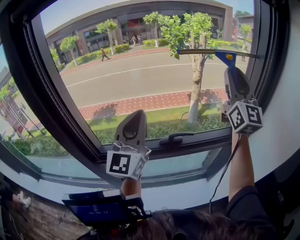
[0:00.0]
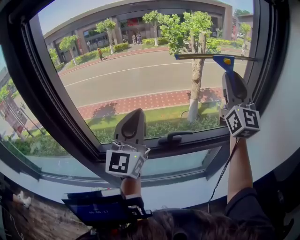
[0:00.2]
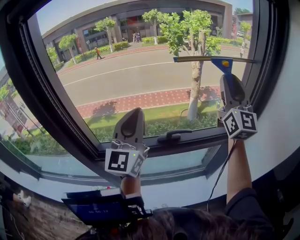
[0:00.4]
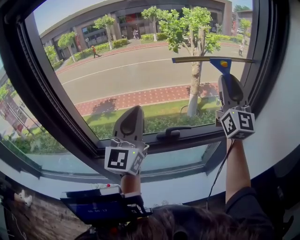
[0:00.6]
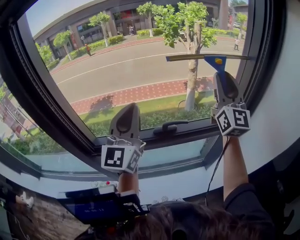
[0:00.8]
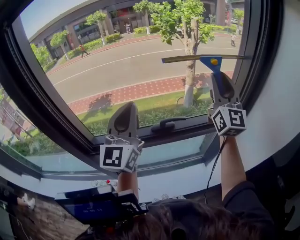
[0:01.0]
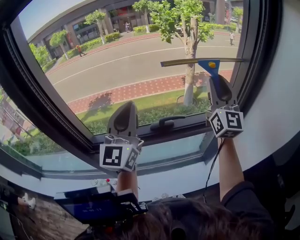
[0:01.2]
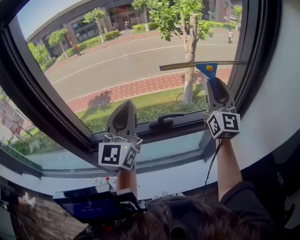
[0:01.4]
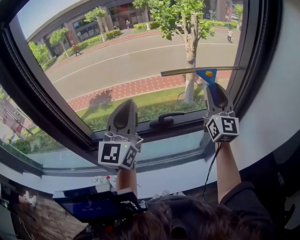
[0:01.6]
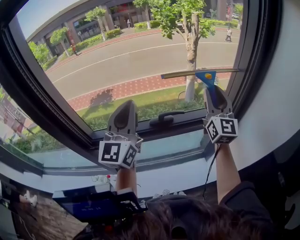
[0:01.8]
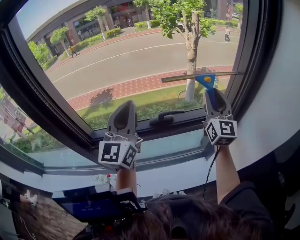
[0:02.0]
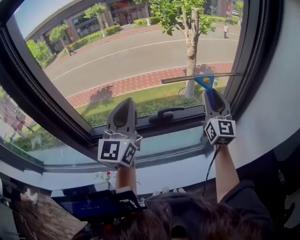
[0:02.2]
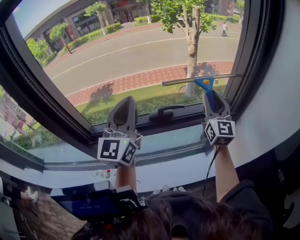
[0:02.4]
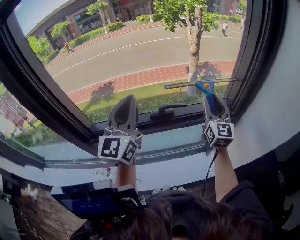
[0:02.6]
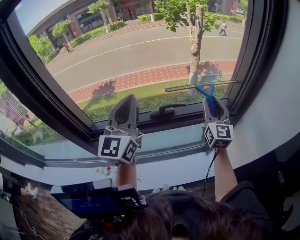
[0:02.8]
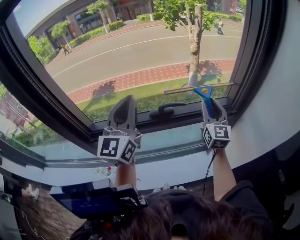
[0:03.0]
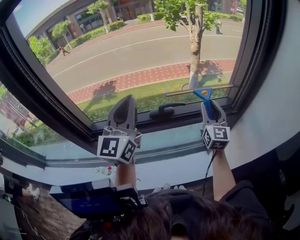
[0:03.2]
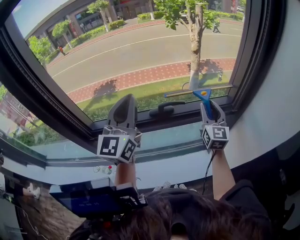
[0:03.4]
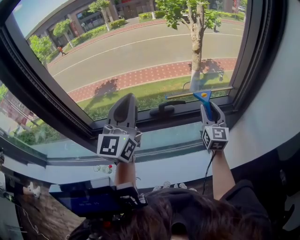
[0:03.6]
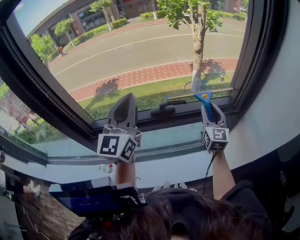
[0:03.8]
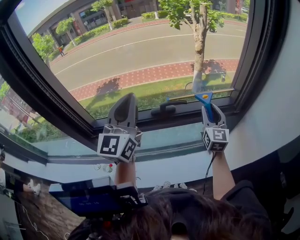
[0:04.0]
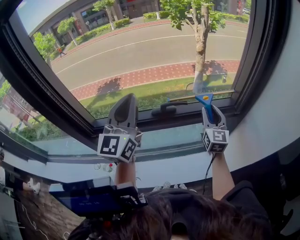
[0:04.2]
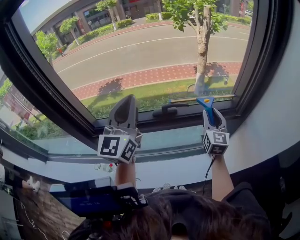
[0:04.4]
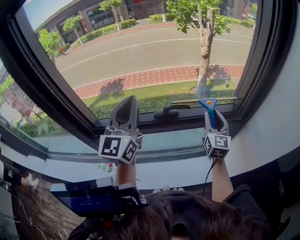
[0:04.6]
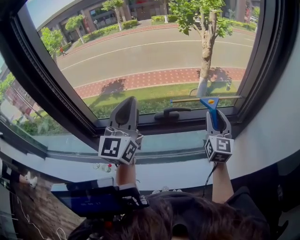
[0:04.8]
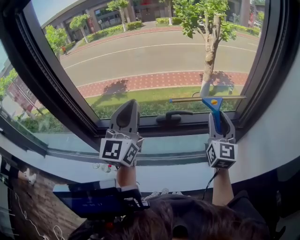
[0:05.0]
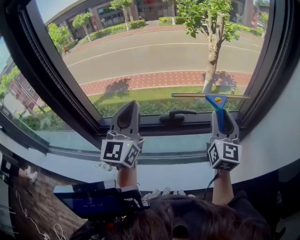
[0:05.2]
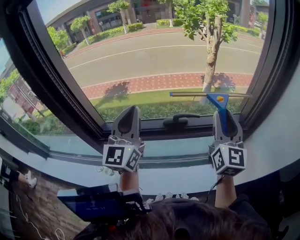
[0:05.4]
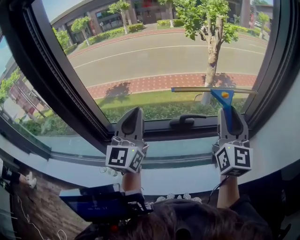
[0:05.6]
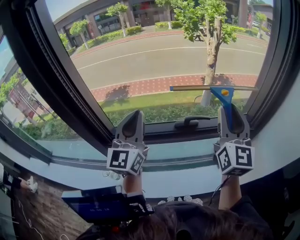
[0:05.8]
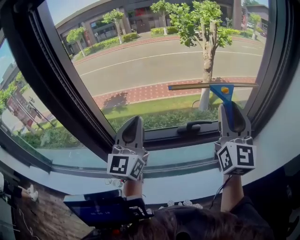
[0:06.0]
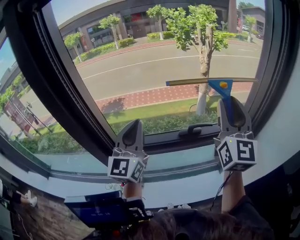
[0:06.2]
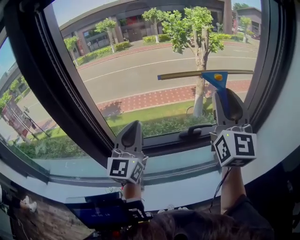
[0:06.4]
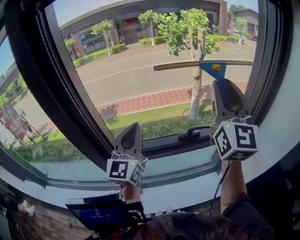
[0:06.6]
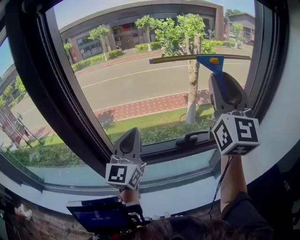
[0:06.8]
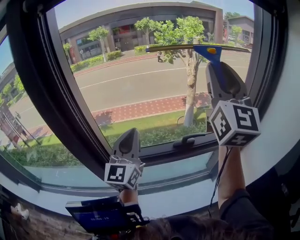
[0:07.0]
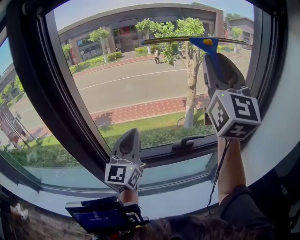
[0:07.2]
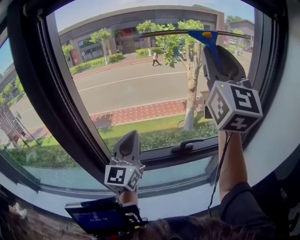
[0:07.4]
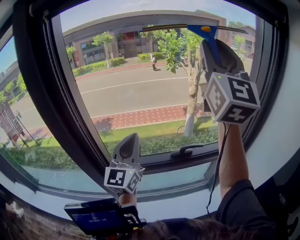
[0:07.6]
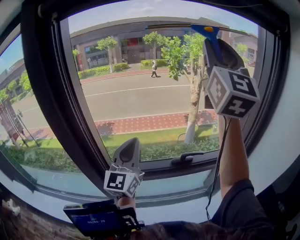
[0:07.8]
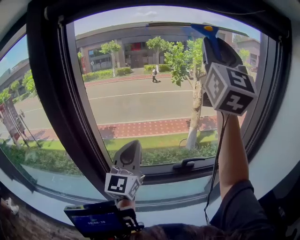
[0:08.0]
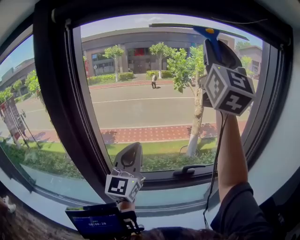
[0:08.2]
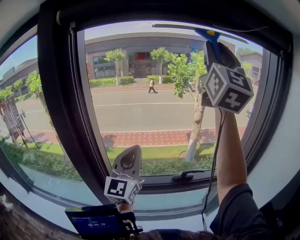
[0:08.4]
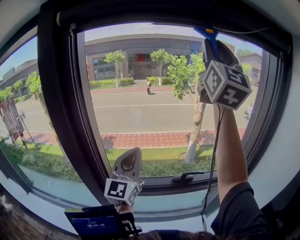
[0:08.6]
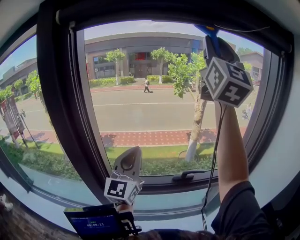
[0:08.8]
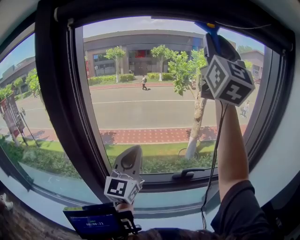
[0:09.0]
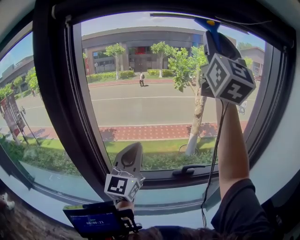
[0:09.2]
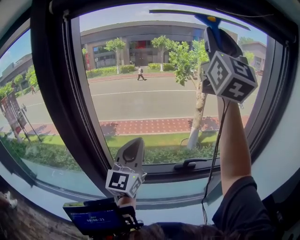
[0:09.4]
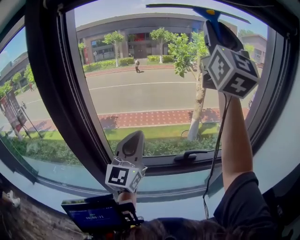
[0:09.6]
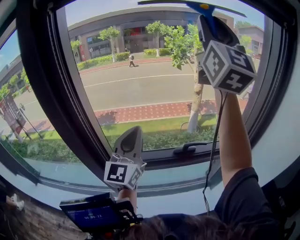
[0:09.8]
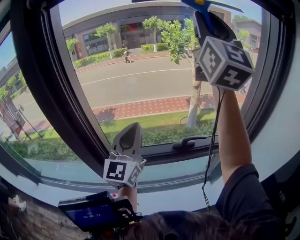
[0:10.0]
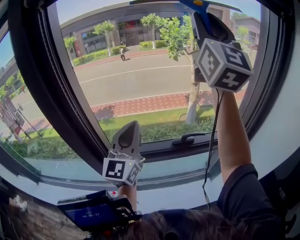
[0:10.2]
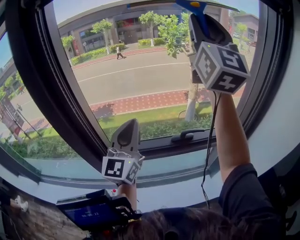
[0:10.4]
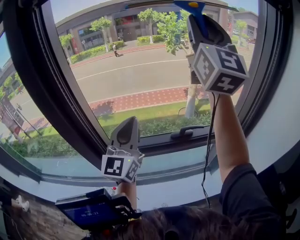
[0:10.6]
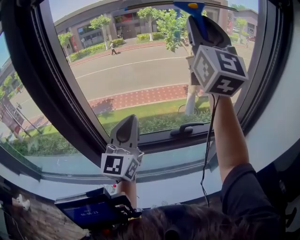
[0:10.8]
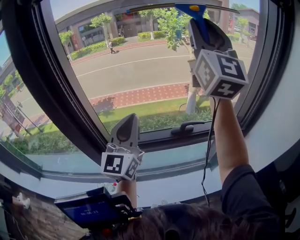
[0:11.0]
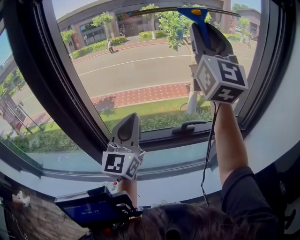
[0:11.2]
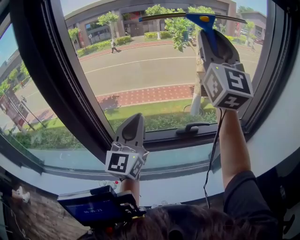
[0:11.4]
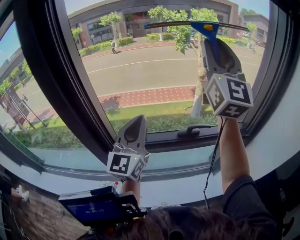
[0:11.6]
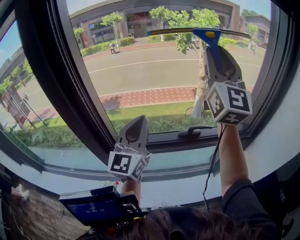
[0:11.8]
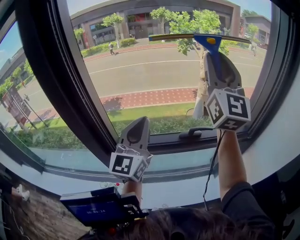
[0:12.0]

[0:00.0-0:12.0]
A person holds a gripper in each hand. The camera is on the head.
0:00.0 to 0:01.6: The right gripper moves downward, roughly 15 cm.
0:01.6 to 0:03.0: The right gripper shifts some 15 cm downward.
0:03.0 to 0:04.4: The right gripper heads downward, covering roughly 5 cm.
0:04.4 to 0:06.0: The left gripper is displaced to the left by some 10 cm. Meanwhile the right gripper shifts approximately 25 cm upward and to the left.
0:06.0 to 0:07.6: The right gripper shifts roughly 25 cm upward, and changes its angle by some 20 degrees.
0:07.6 to 0:09.0: The right gripper moves upward, about 10 cm.
0:09.0 to 0:10.4: The right gripper is displaced downward by roughly 10 cm.
0:10.4 to 0:12.0: The right gripper goes some 10 cm downward.

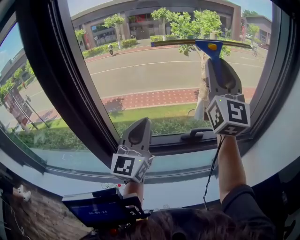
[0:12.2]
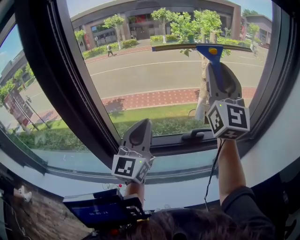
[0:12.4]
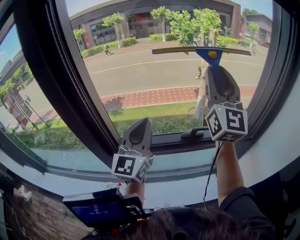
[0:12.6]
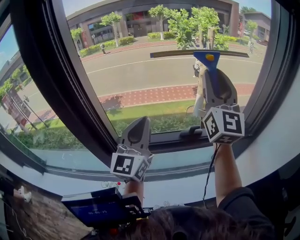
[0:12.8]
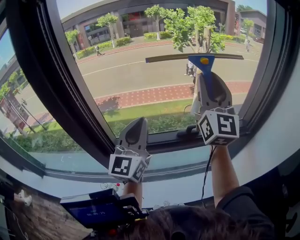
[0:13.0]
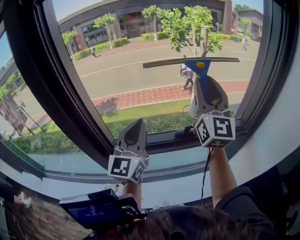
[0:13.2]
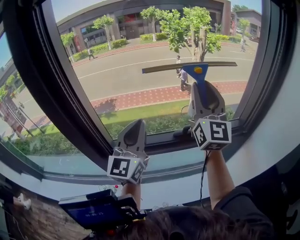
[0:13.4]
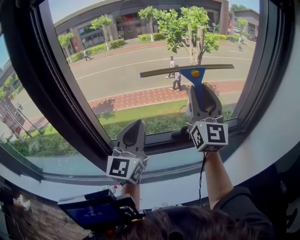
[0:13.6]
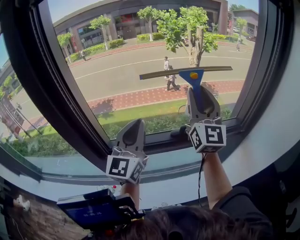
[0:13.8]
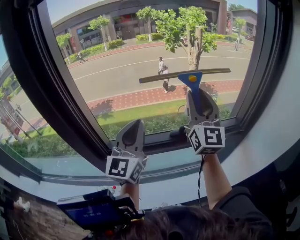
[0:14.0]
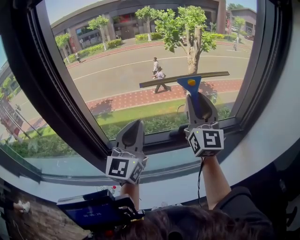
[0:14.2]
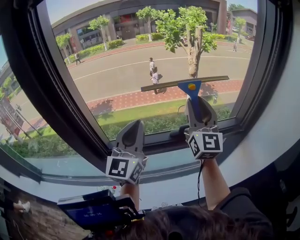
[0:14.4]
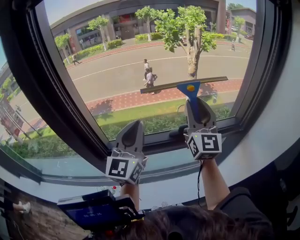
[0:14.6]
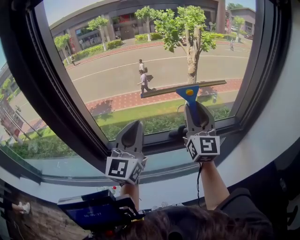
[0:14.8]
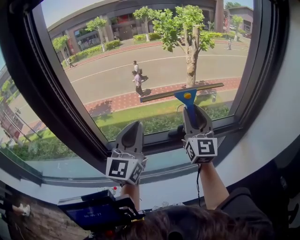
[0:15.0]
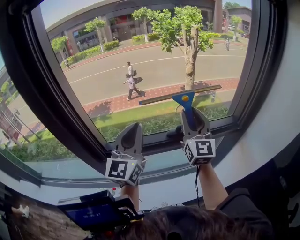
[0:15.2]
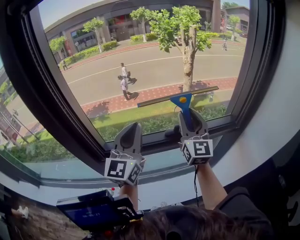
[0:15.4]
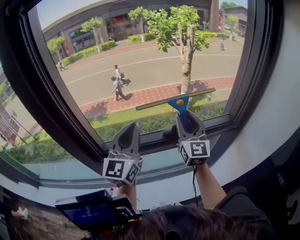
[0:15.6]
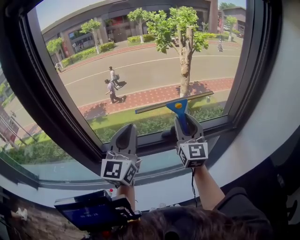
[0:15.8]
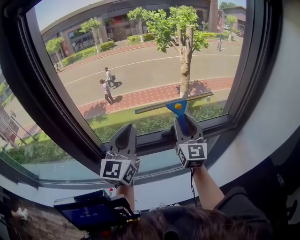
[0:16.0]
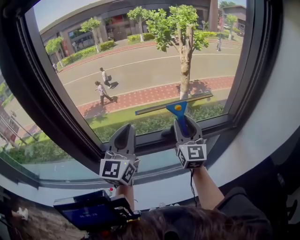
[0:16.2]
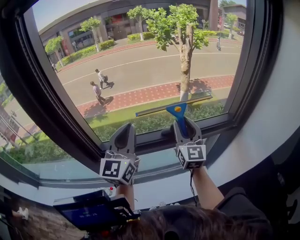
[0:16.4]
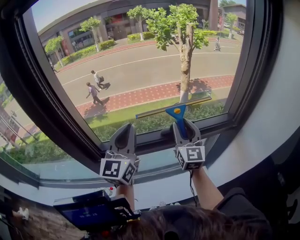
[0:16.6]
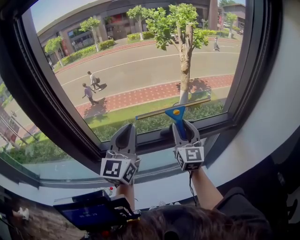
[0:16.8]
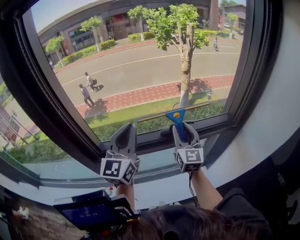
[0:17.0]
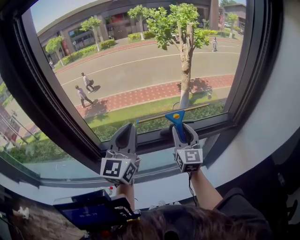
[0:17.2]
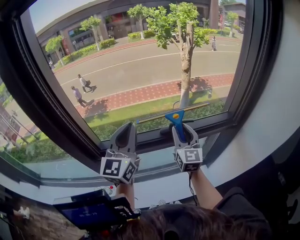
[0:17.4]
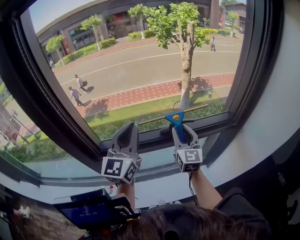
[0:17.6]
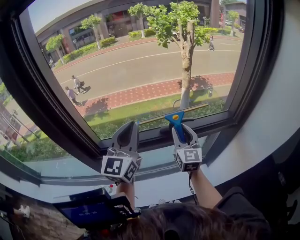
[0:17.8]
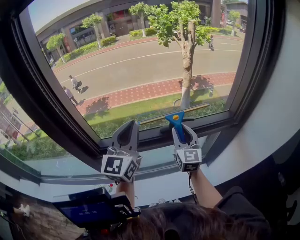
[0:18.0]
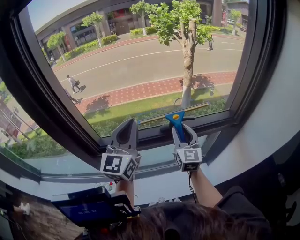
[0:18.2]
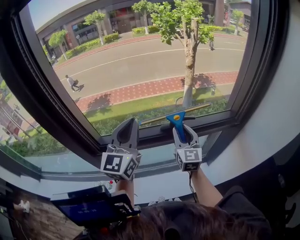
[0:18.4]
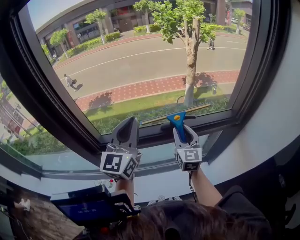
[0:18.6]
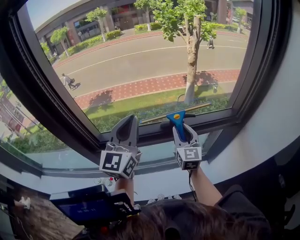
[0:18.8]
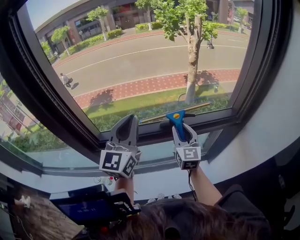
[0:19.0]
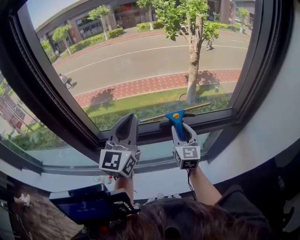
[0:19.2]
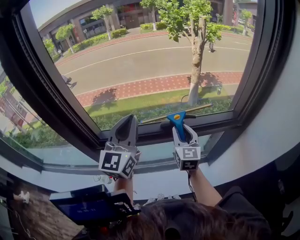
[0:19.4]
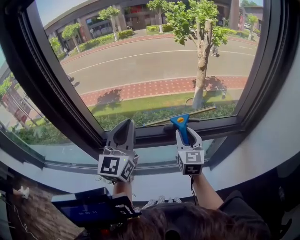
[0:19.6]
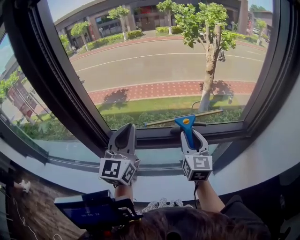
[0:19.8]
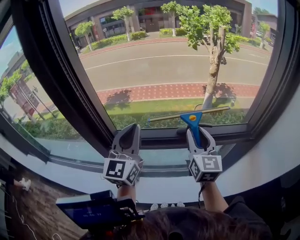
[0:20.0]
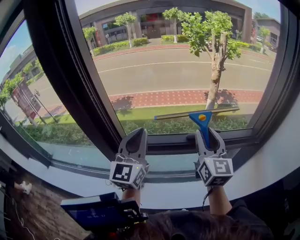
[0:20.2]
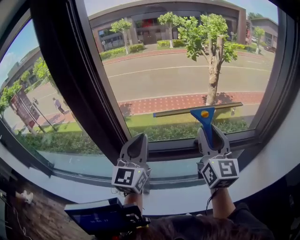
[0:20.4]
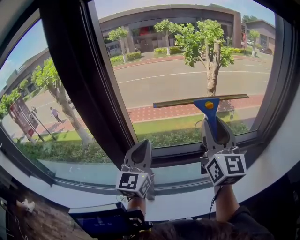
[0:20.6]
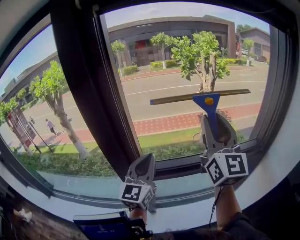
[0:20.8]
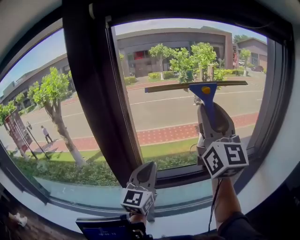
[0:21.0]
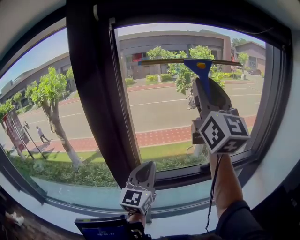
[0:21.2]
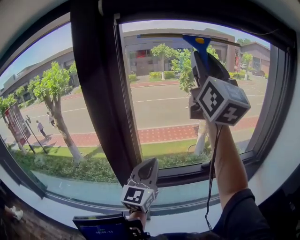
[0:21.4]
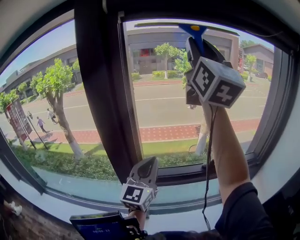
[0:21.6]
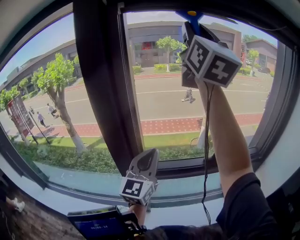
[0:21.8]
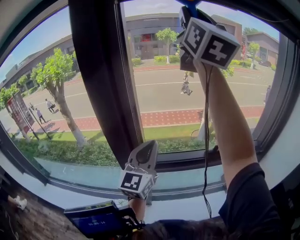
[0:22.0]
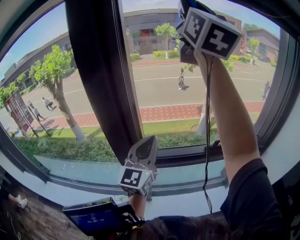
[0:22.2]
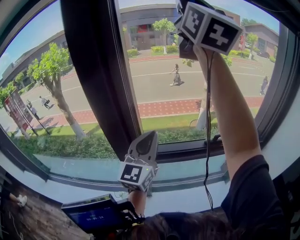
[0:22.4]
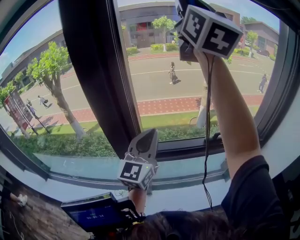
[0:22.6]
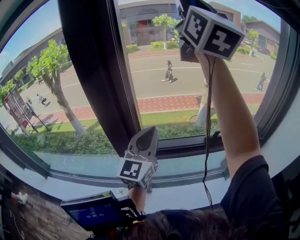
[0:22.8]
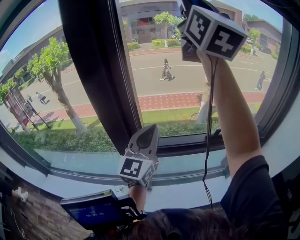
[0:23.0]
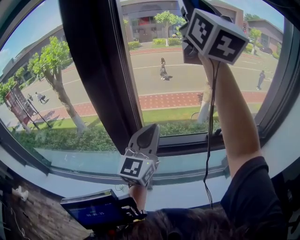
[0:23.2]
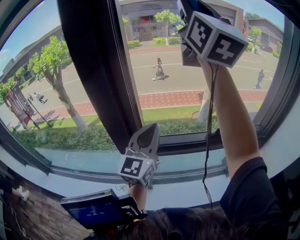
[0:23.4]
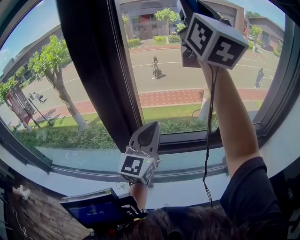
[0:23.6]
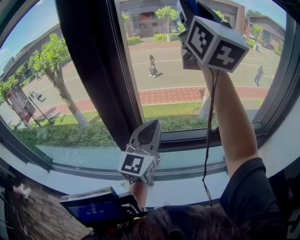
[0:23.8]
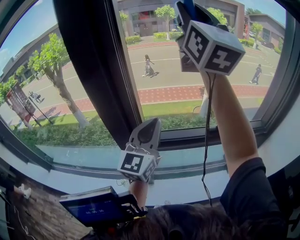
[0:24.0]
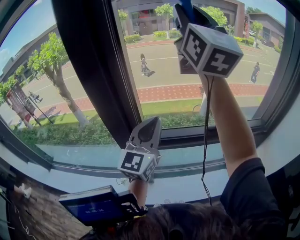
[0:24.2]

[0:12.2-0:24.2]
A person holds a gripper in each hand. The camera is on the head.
0:12.2 to 0:13.8: The right gripper moves downward, approximately 10 cm.
0:13.8 to 0:15.2: The right gripper heads downward, covering approximately 10 cm.
0:15.2 to 0:16.6: The right gripper moves downward, some 5 cm.
0:16.6 to 0:18.2: The right gripper travels downward by some 5 cm.
0:18.2 to 0:19.8: There are only small adjustments of the grippers.
0:19.8 to 0:21.2: The left gripper moves to the left, approximately 15 cm; the right gripper goes some 40 cm upward, and points its fingers approximately 40 degrees further upward.
0:21.2 to 0:22.6: The right gripper shifts roughly 15 cm upward and forward.
0:22.6 to 0:24.2: The right gripper shifts about 5 cm downward.
